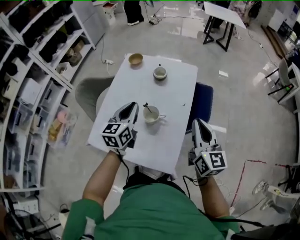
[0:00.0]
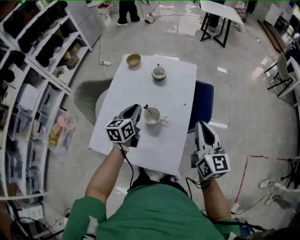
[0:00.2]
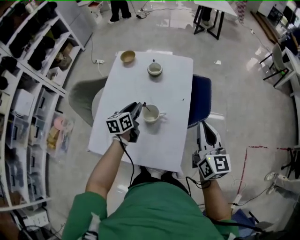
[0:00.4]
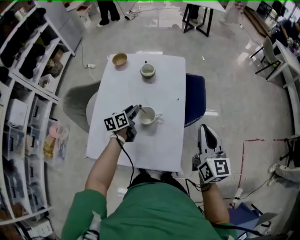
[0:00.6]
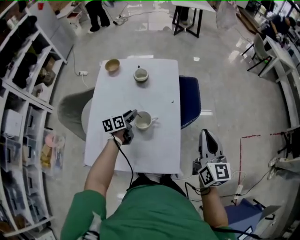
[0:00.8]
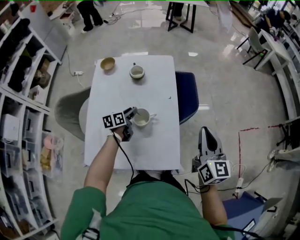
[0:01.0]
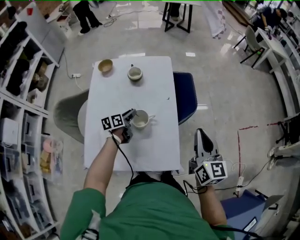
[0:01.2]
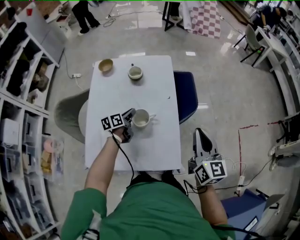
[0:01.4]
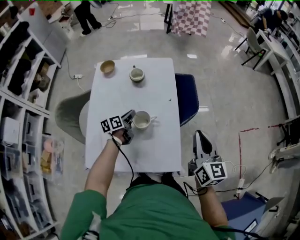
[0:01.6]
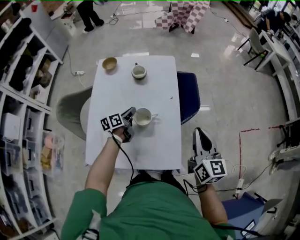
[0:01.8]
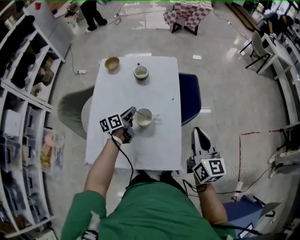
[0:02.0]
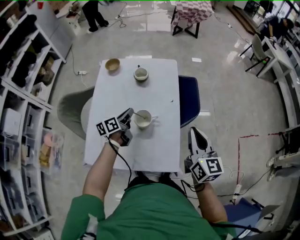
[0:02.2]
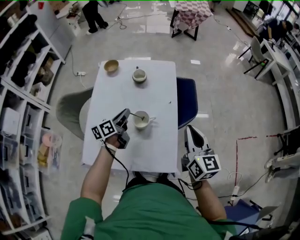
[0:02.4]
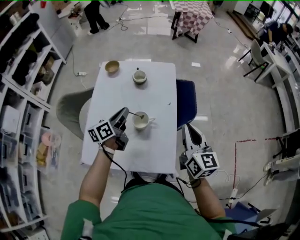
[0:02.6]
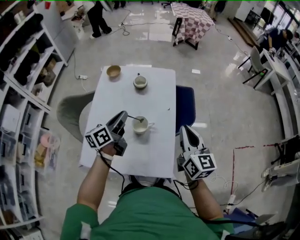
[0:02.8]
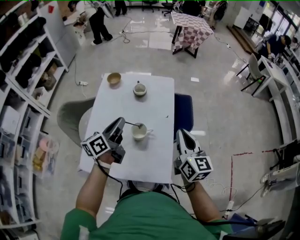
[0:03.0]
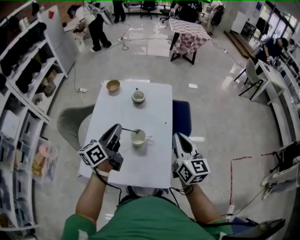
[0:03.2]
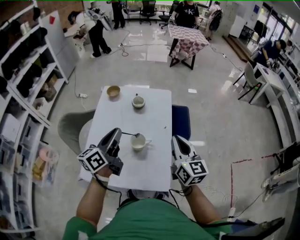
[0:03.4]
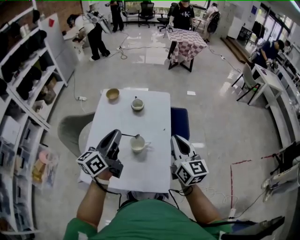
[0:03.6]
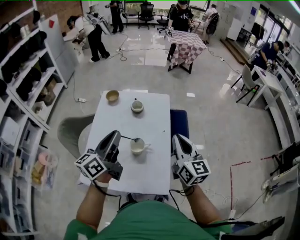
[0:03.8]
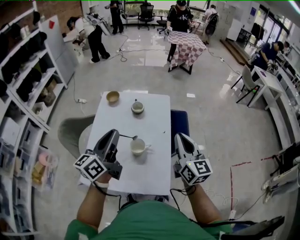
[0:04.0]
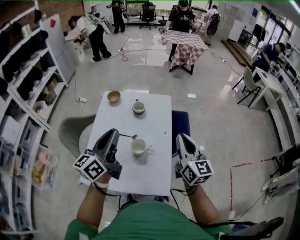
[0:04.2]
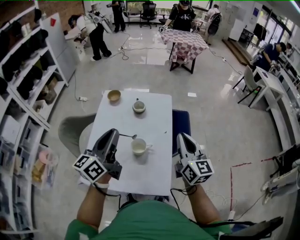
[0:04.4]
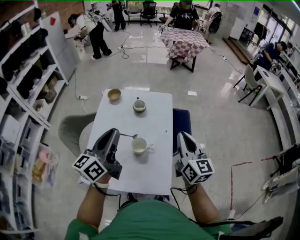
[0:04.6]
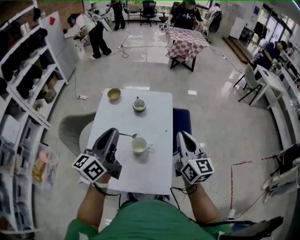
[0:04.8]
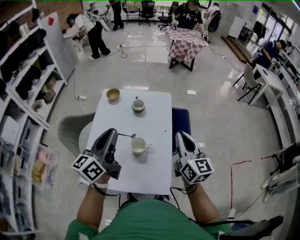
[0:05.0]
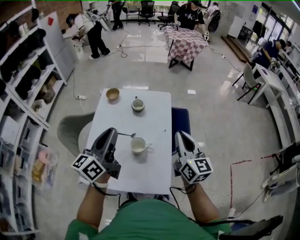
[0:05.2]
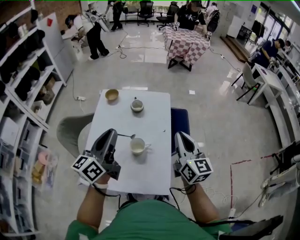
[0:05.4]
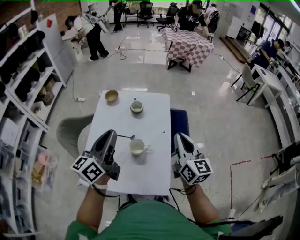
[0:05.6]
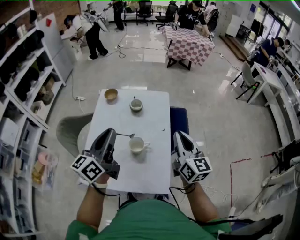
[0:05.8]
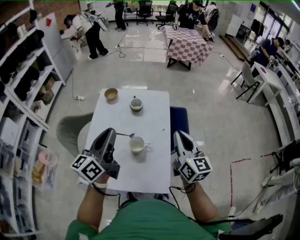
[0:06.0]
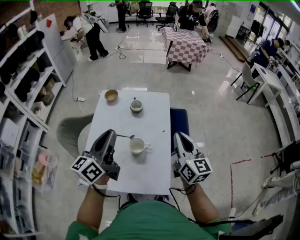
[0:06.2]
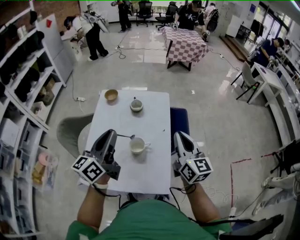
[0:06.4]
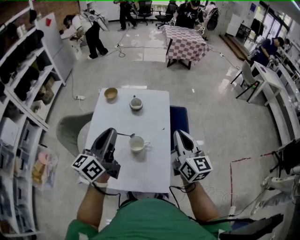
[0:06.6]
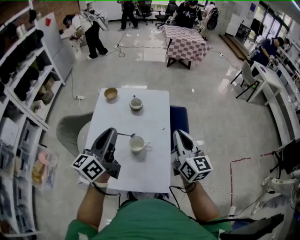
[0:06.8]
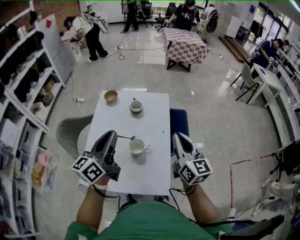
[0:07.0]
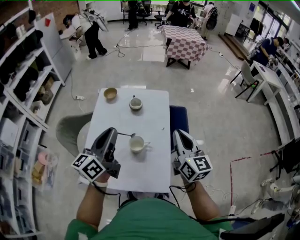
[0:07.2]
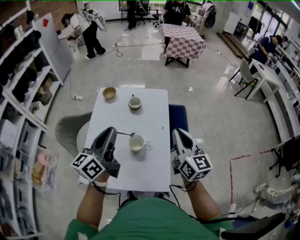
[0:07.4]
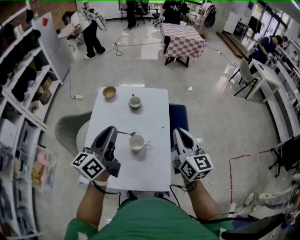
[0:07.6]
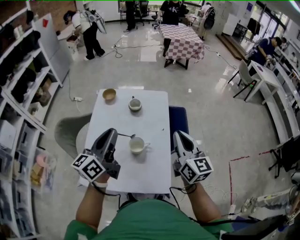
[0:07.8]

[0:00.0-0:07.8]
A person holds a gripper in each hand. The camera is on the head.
0.0 to 1.6 s: The right gripper changes place by roughly 5 cm, and turns by roughly 20 degrees; the left gripper shifts about 20 cm downward, turns by roughly 40 degrees, and opens, then closes again.
1.6 to 3.2 s: The left gripper moves upward, about 25 cm, and changes its angle by about 30 degrees, while the right gripper heads to the left, covering roughly 5 cm.
3.2 to 4.6 s: The left gripper goes roughly 10 cm upward.
4.6 to 6.2 s: Both grippers stay about where they are.
6.2 to 7.8 s: The grippers move only a little.

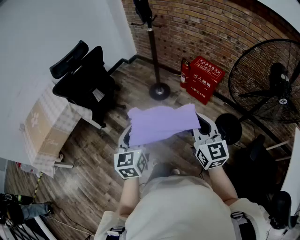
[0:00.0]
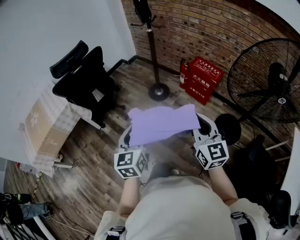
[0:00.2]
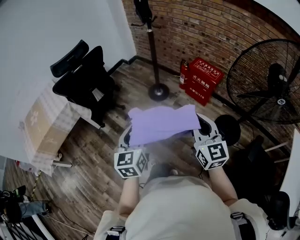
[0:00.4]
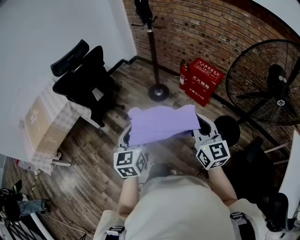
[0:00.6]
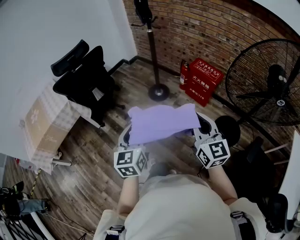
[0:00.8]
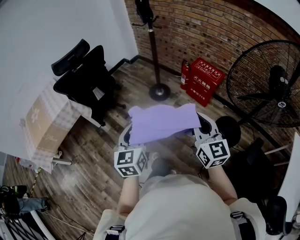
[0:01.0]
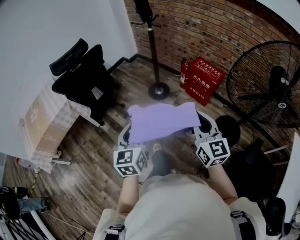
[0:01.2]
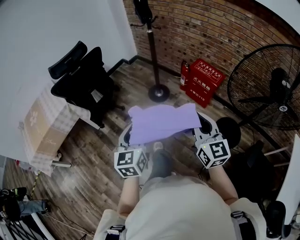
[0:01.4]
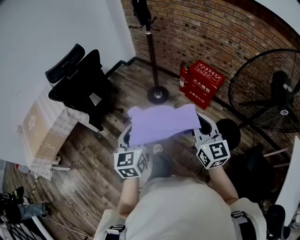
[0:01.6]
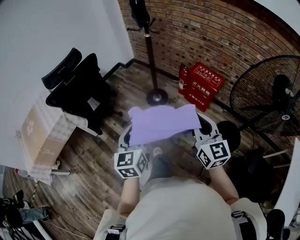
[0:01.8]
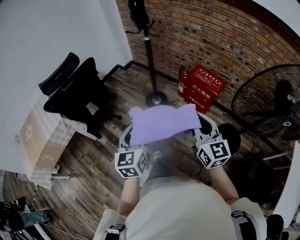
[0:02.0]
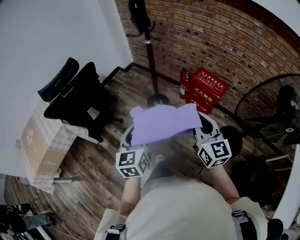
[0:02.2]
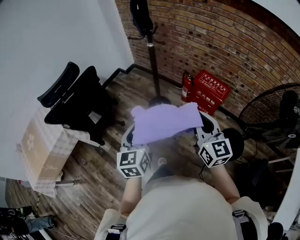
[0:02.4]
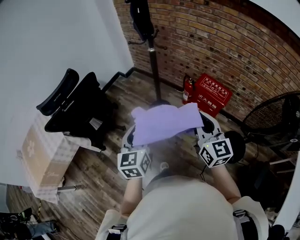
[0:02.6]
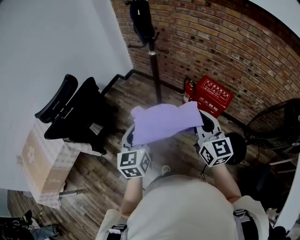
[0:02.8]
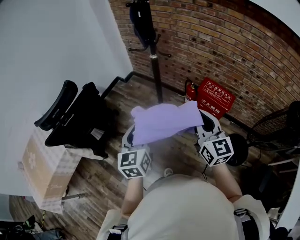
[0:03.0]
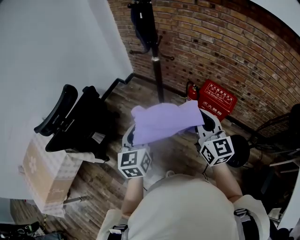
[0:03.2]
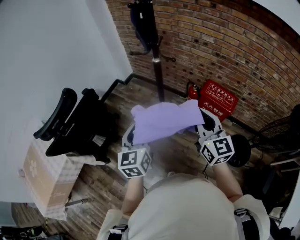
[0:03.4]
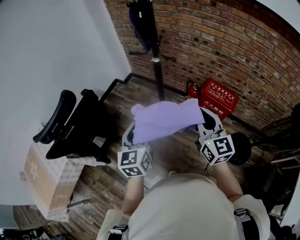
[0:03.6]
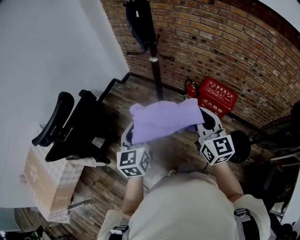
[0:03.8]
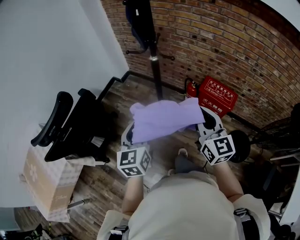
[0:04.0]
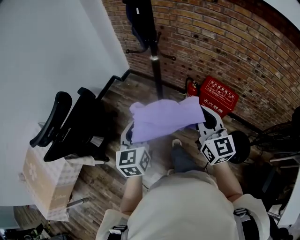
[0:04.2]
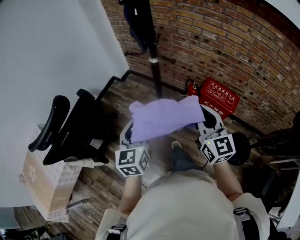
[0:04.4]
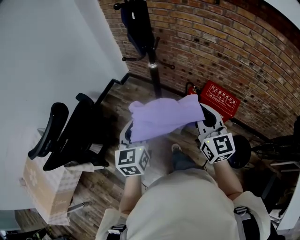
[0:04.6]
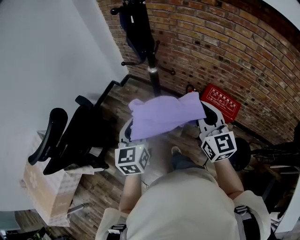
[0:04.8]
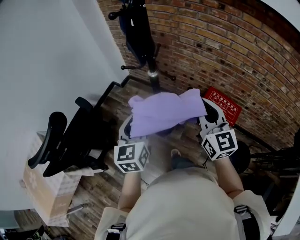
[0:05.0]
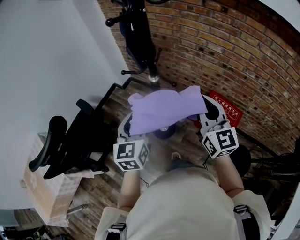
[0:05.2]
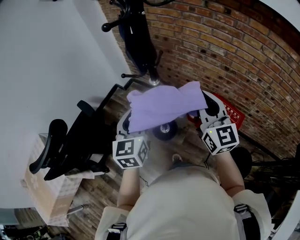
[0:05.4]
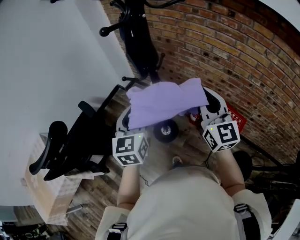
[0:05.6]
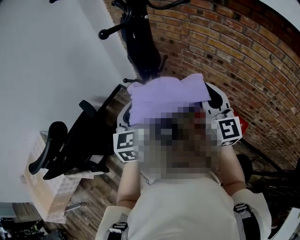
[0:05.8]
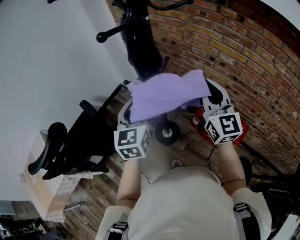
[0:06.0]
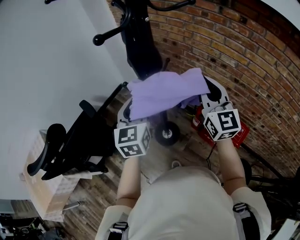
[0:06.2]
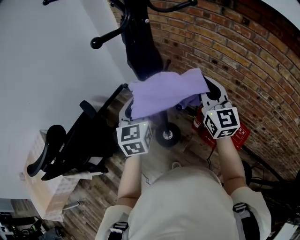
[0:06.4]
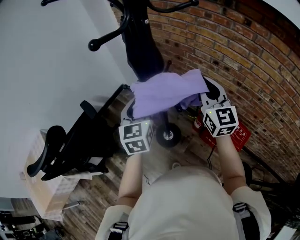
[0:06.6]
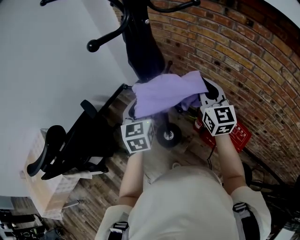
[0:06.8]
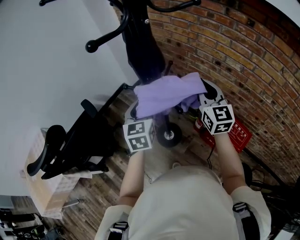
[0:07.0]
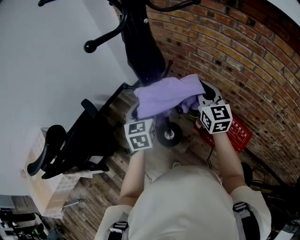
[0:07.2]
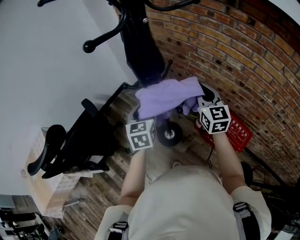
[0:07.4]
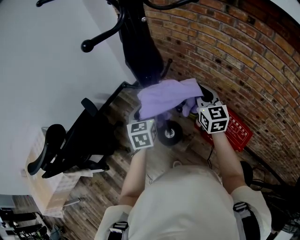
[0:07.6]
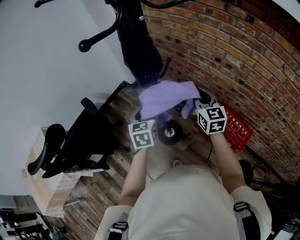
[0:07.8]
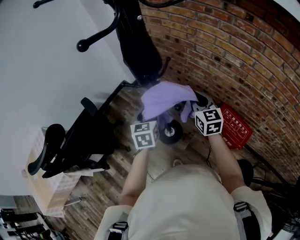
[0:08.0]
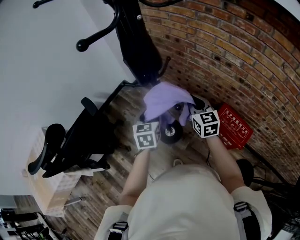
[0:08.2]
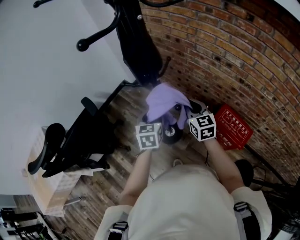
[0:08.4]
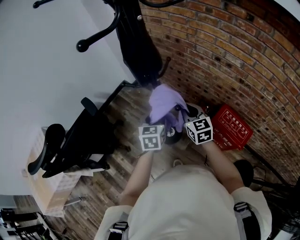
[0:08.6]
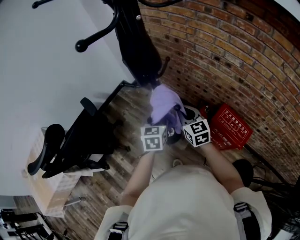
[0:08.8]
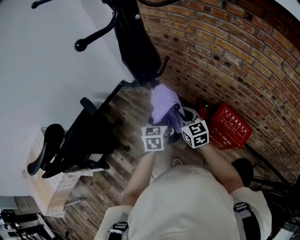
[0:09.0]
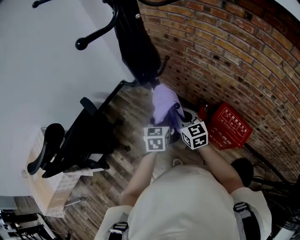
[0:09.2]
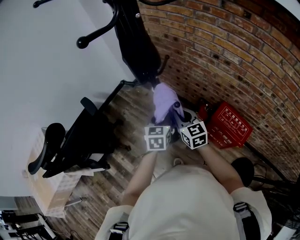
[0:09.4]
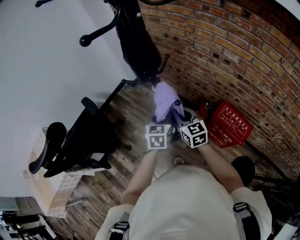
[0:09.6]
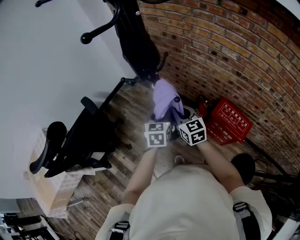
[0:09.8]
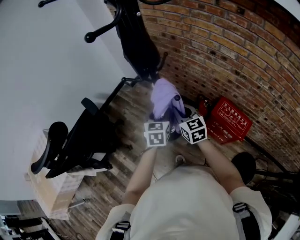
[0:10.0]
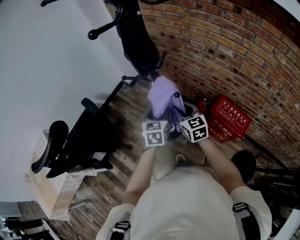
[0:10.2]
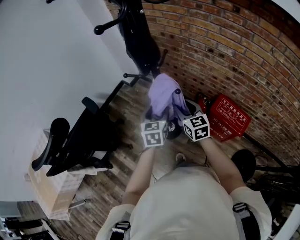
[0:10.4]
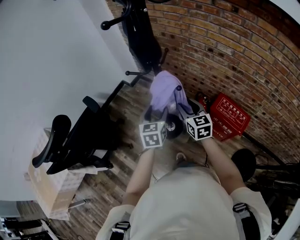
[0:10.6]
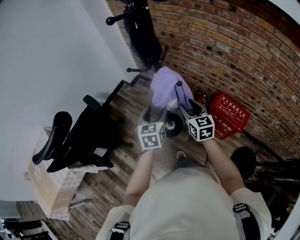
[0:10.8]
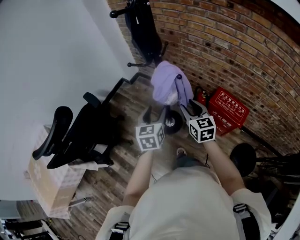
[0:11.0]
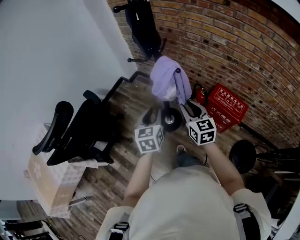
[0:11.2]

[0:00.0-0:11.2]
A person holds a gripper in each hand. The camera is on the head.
0.0 to 1.6 s: The left gripper moves roughly 5 cm, while the right gripper goes about 5 cm forward.
1.6 to 3.2 s: The two grippers go about 30 cm forward.
3.2 to 4.8 s: The two grippers go roughly 15 cm forward.
4.8 to 6.4 s: Both grippers travel together forward, approximately 20 cm.
6.4 to 8.0 s: Both grippers travel together downward, some 15 cm. The right gripper turns by some 20 degrees.
8.0 to 9.6 s: The right gripper moves to the left, downward and backward, approximately 10 cm; the left gripper moves to the right, approximately 5 cm.
9.6 to 11.2 s: The left gripper moves backward and to the left, approximately 15 cm, and opens, then closes again, while the right gripper moves backward, about 15 cm, and opens up.

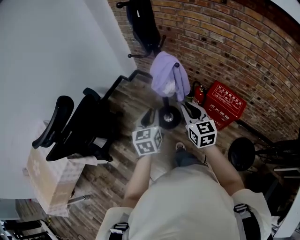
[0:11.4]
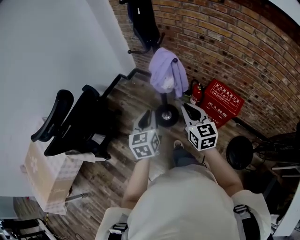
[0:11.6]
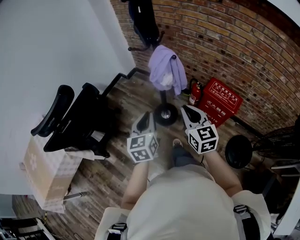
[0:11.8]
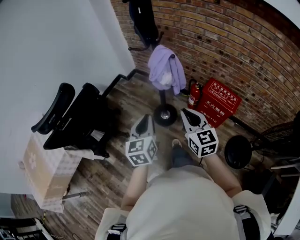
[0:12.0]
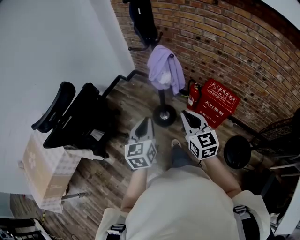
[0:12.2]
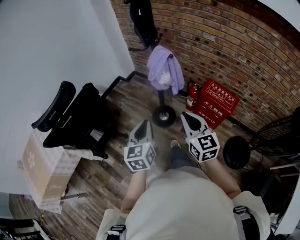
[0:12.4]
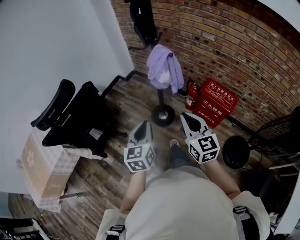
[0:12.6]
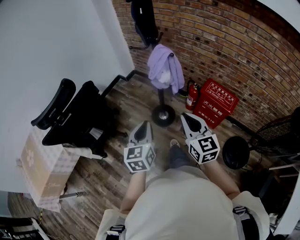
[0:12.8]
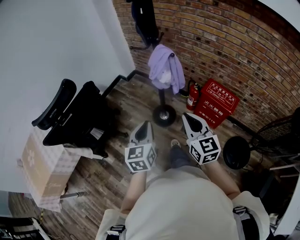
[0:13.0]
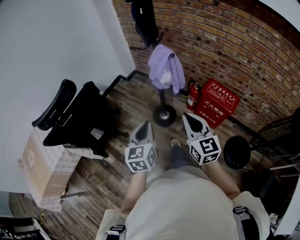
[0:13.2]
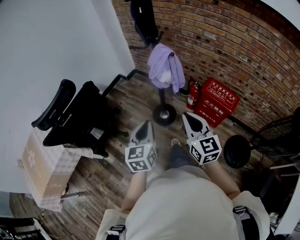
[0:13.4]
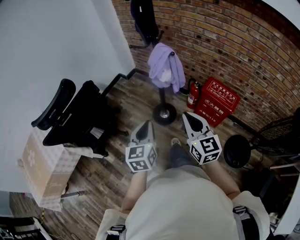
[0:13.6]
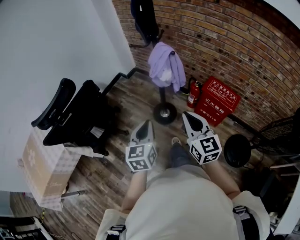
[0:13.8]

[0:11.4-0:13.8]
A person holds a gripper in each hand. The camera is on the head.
11.4 to 12.6 s: The grippers both shift backward by about 15 cm.
12.6 to 13.8 s: Both grippers stay about where they are.

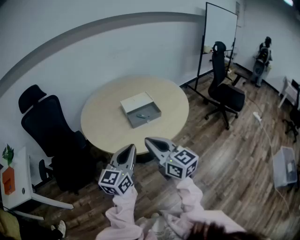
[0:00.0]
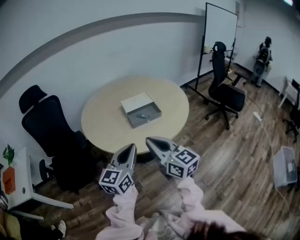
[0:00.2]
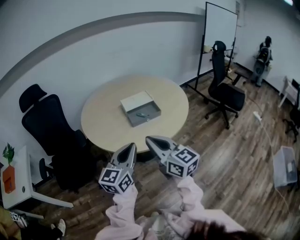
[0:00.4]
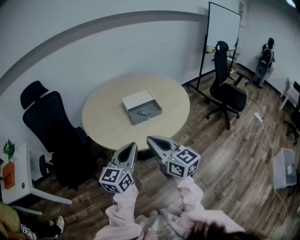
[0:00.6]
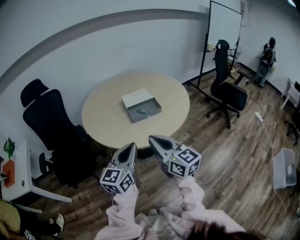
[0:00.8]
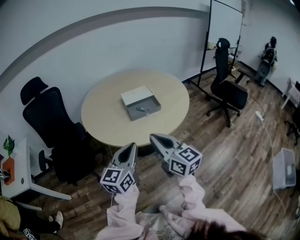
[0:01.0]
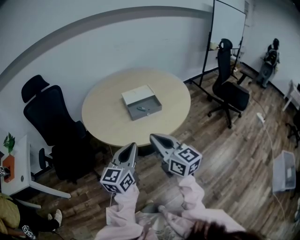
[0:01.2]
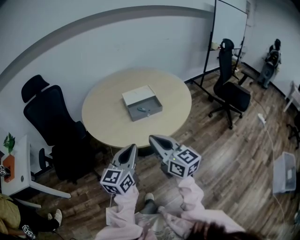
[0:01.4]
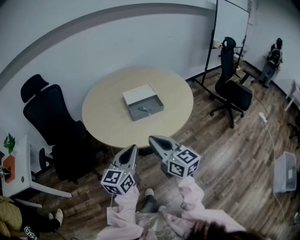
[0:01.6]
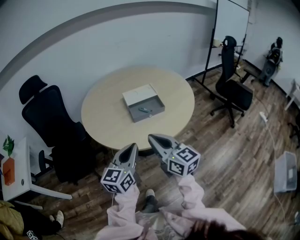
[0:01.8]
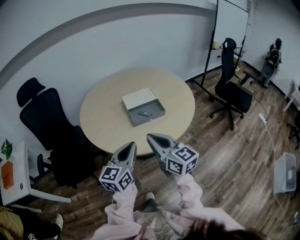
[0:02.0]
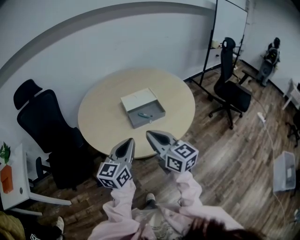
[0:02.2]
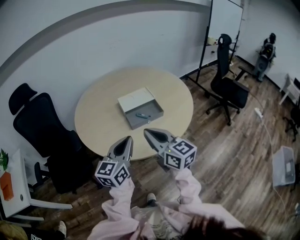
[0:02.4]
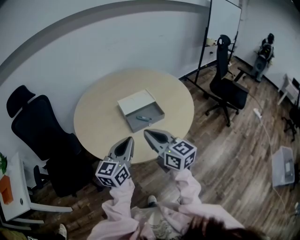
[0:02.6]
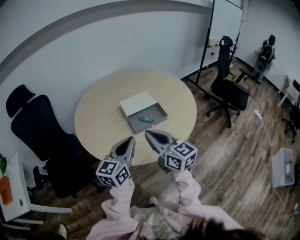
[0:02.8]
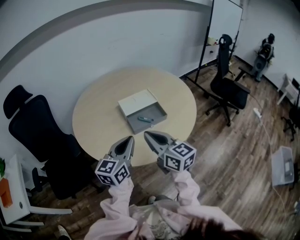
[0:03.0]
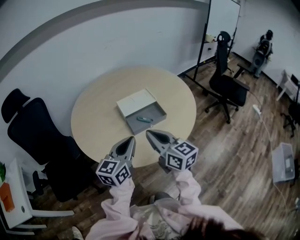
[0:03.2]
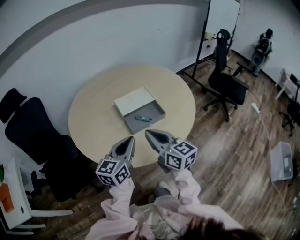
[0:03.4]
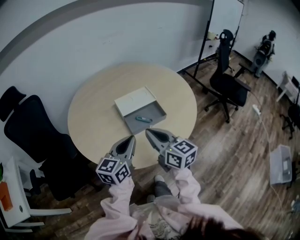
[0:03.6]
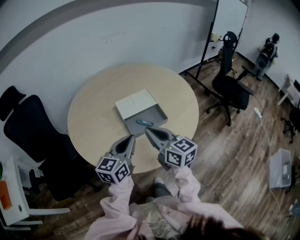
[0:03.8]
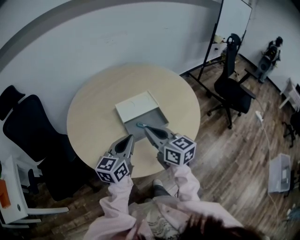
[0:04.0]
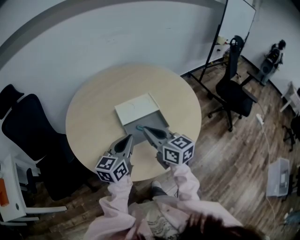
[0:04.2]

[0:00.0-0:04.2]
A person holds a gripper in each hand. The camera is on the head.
0.0 to 1.4 s: There are only small adjustments of the grippers.
1.4 to 2.8 s: Both grippers travel together forward, some 15 cm.
2.8 to 4.2 s: Both grippers move forward, about 15 cm.
